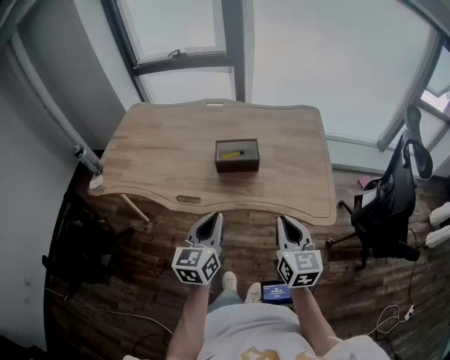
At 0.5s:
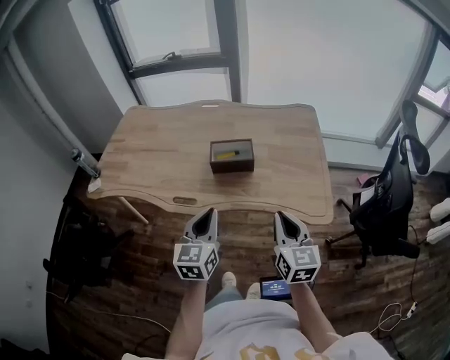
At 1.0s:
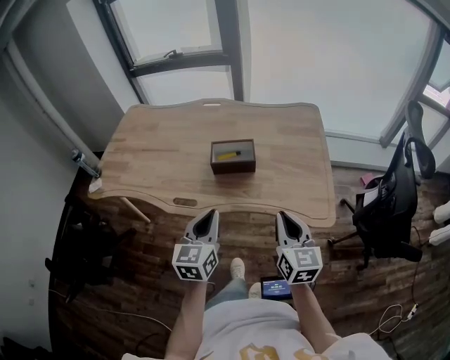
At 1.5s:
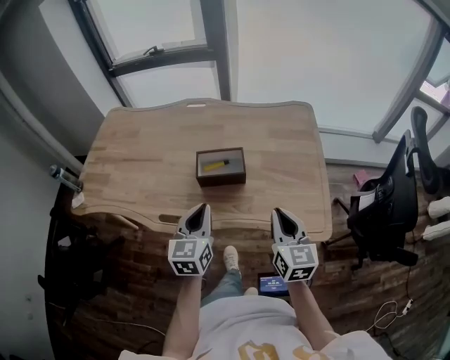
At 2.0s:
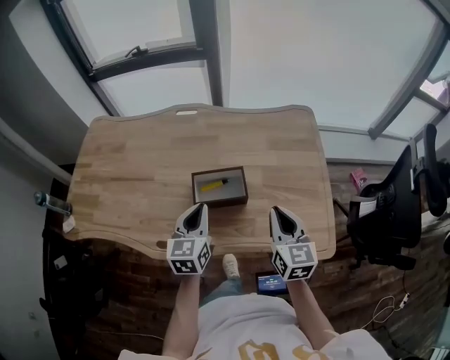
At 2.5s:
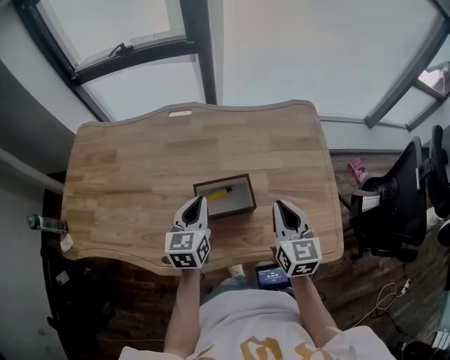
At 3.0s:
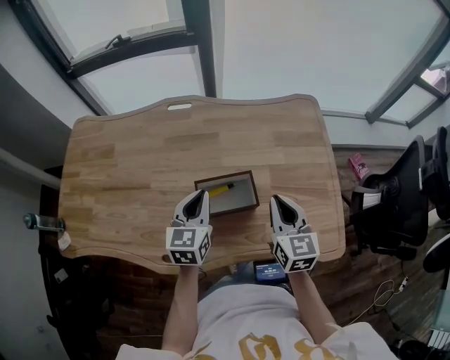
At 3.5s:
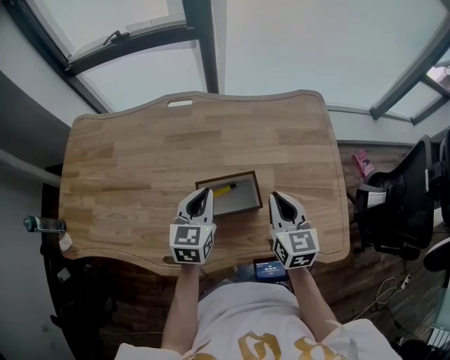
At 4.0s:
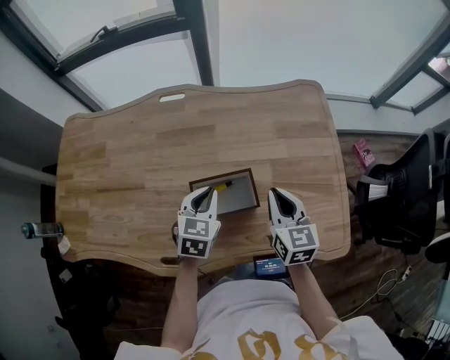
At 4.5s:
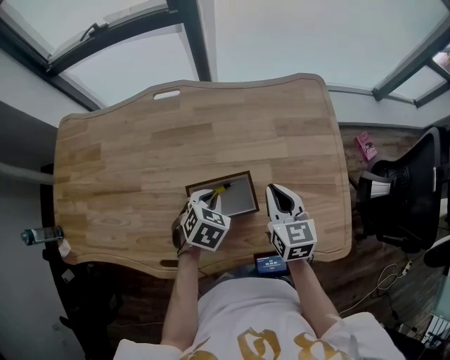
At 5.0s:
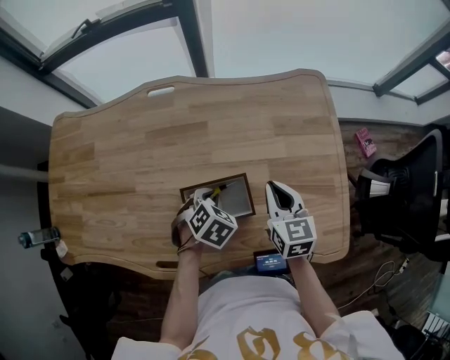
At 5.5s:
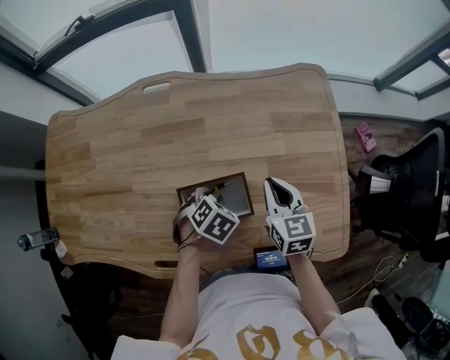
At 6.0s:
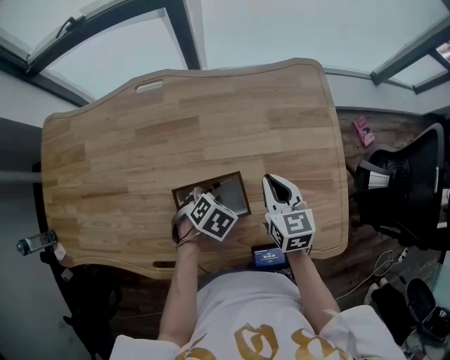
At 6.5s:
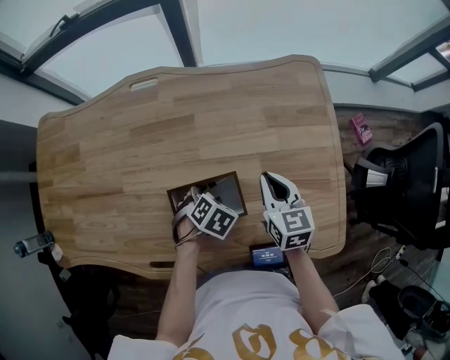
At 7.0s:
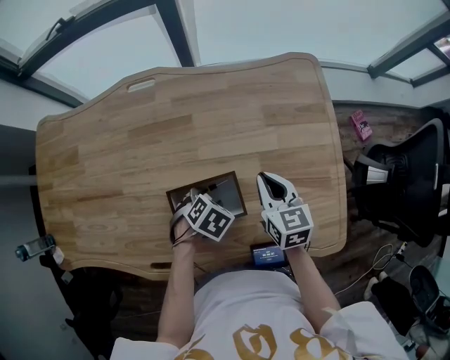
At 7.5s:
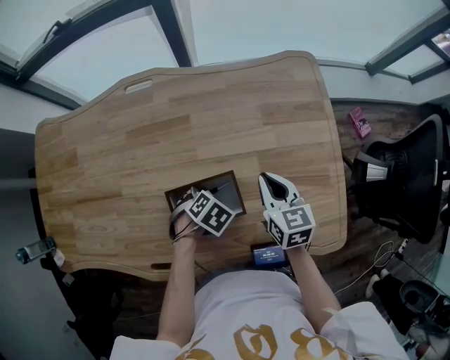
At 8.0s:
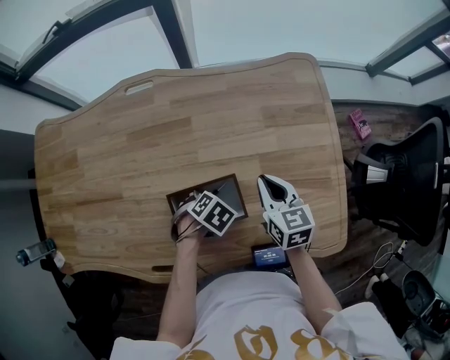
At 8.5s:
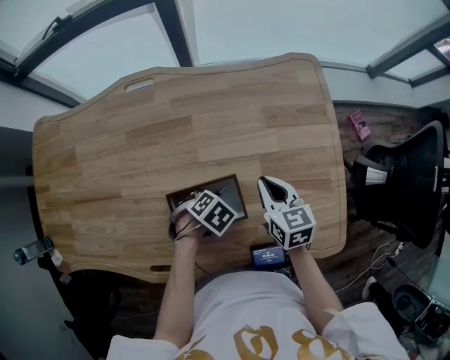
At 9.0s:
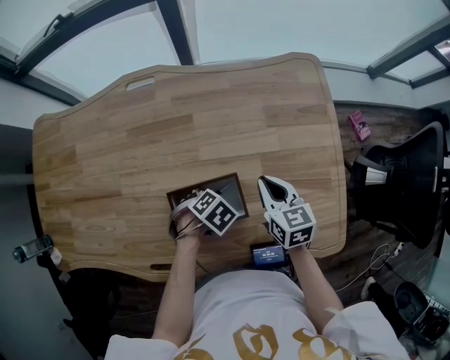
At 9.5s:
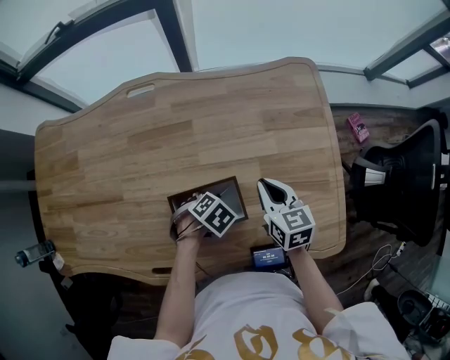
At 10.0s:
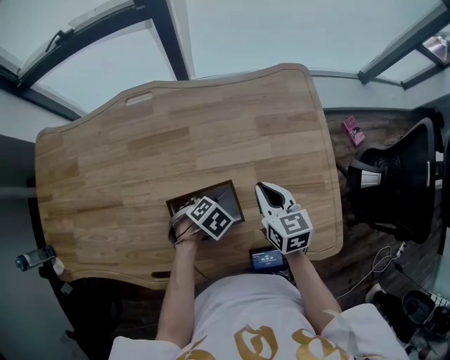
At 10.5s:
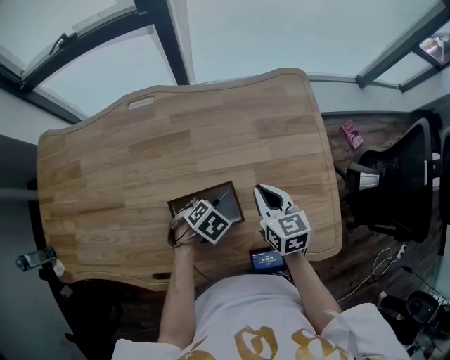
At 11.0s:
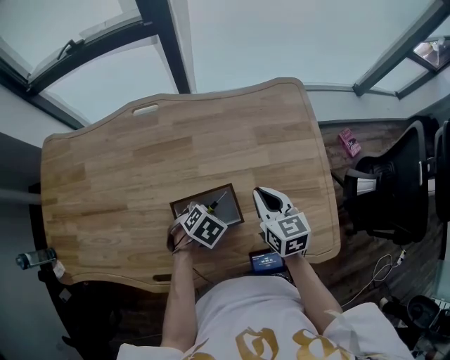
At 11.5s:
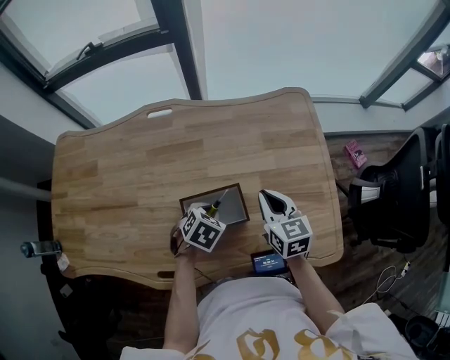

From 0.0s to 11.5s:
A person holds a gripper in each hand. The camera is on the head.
From 0.0s to 2.0s: The grippers both shift forward by approximately 25 cm.
From 2.0s to 4.0s: The two grippers go about 15 cm forward and downward. The left gripper turns by roughly 30 degrees.
From 4.0s to 6.0s: The left gripper shifts roughly 10 cm downward, angles its fingers downward, by about 40 degrees, and opens its fingers; the right gripper ends up roughly 10 cm from where it was.
From 6.0s to 7.5s: The left gripper opens its fingers.
From 7.5s to 9.5s: The left gripper closes up.
From 9.5s to 11.5s: The two grippers go about 5 cm upward. The left gripper changes its angle by some 20 degrees.

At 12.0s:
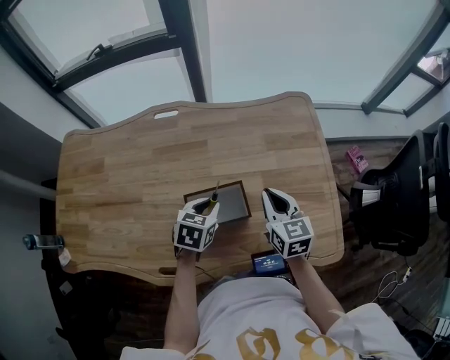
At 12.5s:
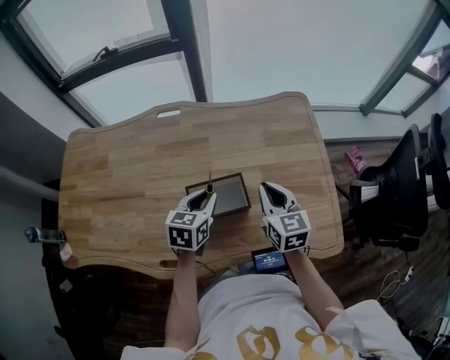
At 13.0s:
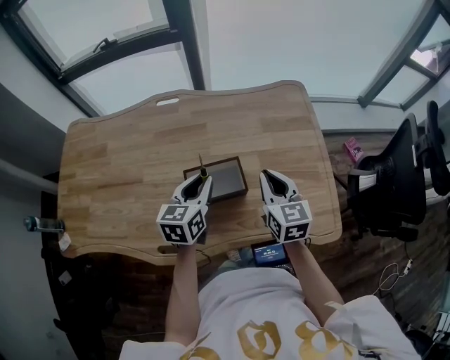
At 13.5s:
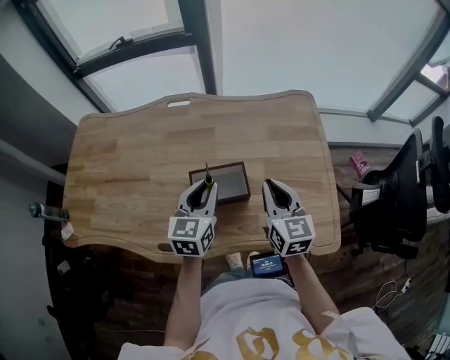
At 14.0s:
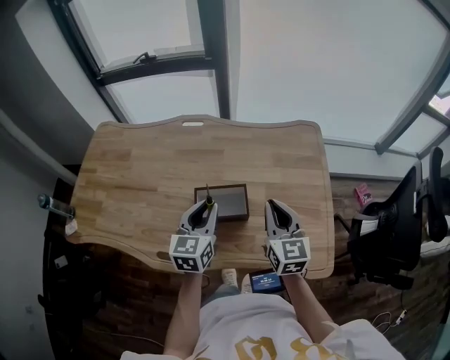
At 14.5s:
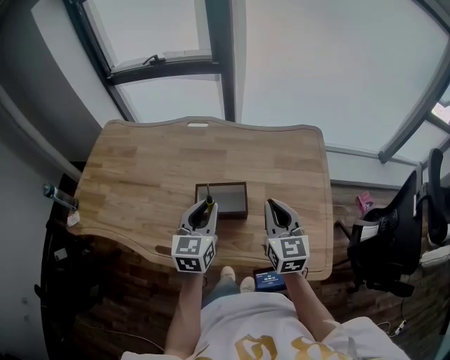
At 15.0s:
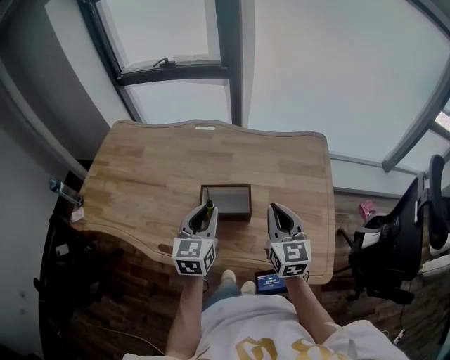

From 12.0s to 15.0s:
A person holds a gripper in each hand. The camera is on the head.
From 12.0s to 13.5s: The left gripper heads upward, covering about 10 cm, and rotates approximately 30 degrees, while the right gripper travels upward and backward by roughly 10 cm.
From 13.5s to 15.0s: The right gripper shifts by roughly 5 cm, while the left gripper travels backward by roughly 5 cm.

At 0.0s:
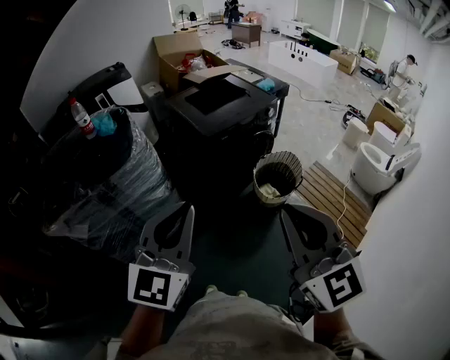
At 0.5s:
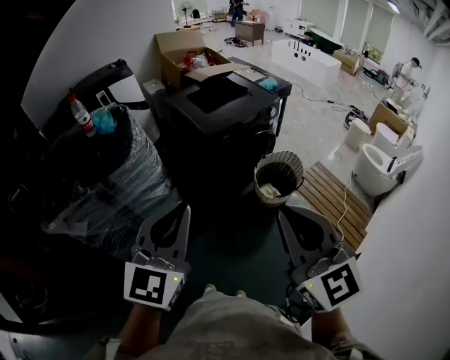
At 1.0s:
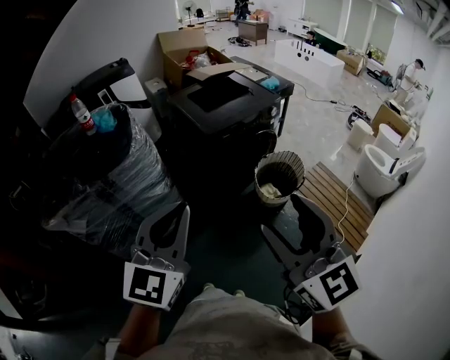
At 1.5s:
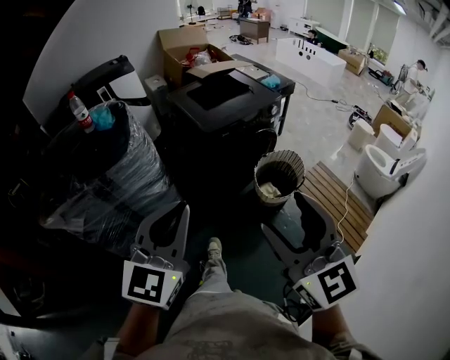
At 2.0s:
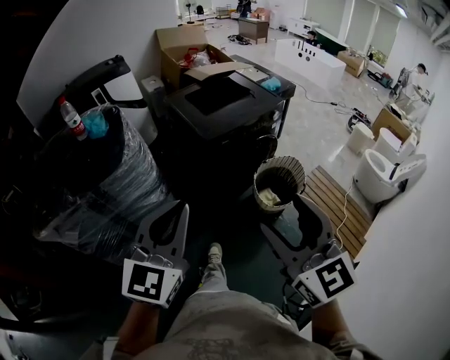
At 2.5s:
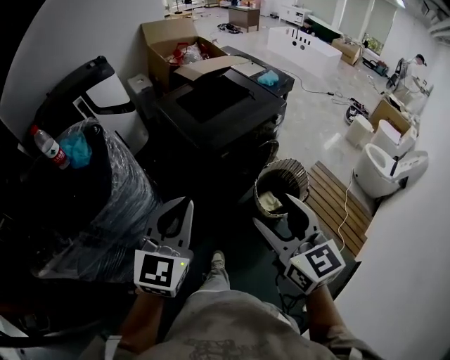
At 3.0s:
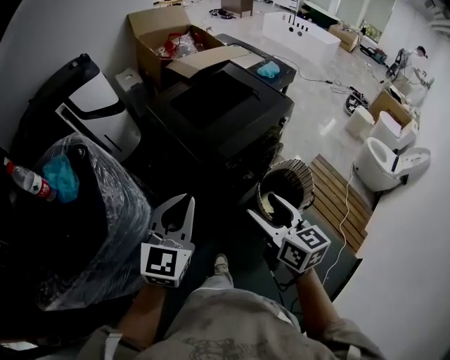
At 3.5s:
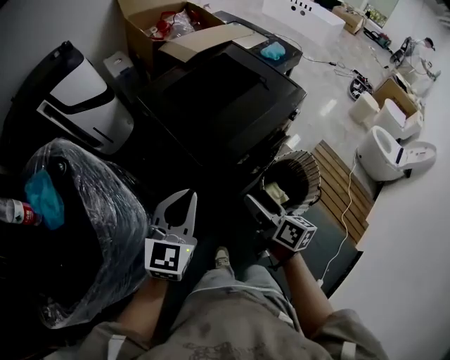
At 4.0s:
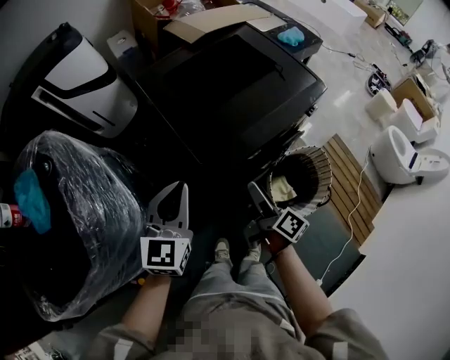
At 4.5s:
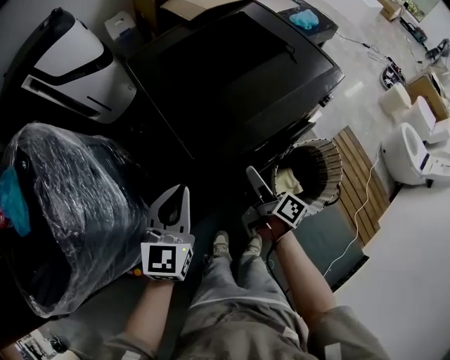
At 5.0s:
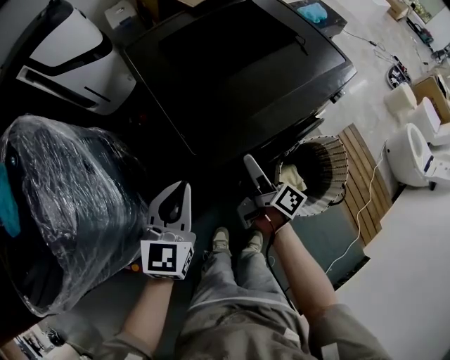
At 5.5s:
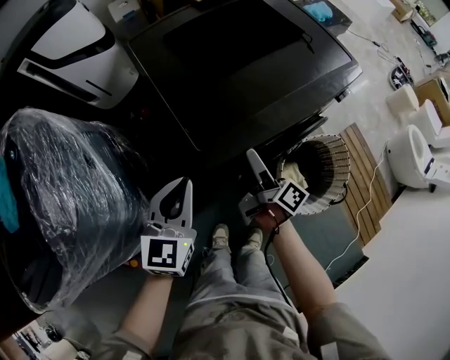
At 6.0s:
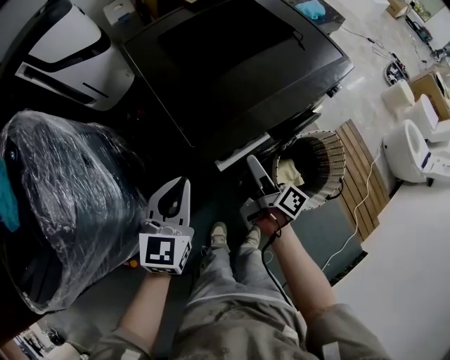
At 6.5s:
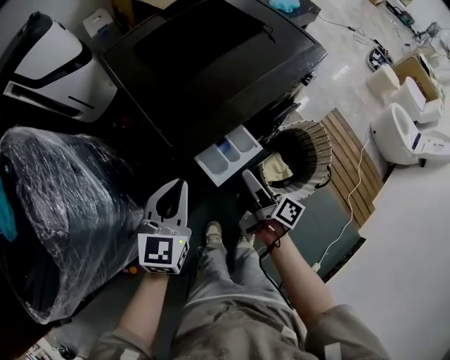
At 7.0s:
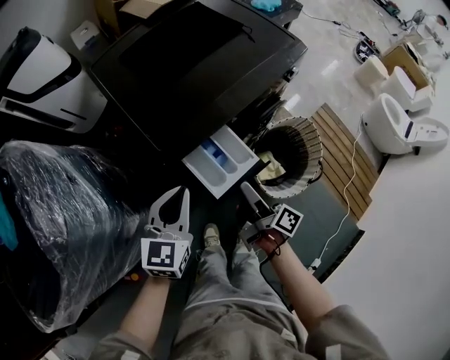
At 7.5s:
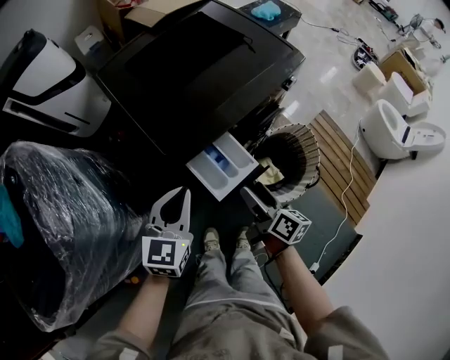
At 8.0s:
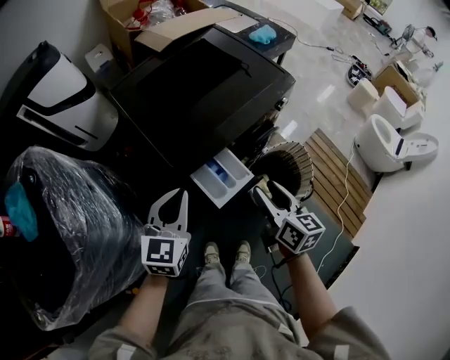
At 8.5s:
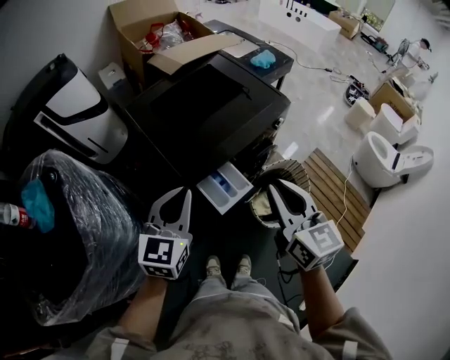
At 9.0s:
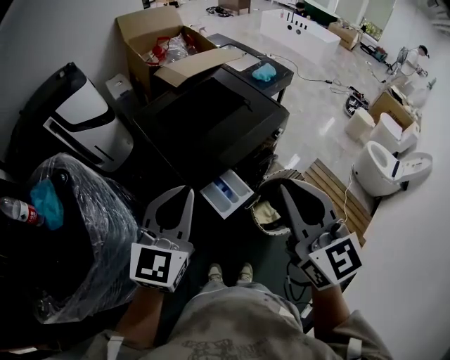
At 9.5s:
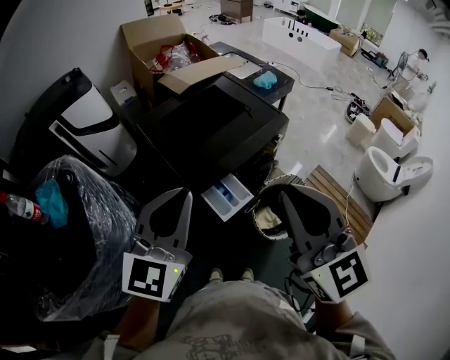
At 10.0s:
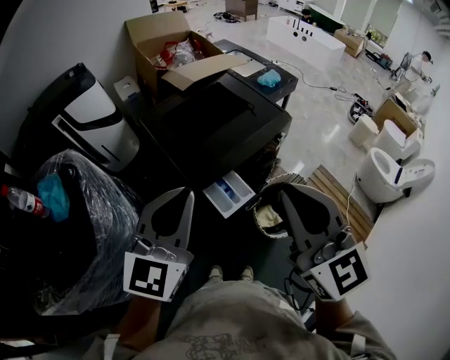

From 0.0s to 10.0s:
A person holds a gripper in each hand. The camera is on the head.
From 0.0s to 2.0s: The right gripper shifts roughly 10 cm forward and downward, and opens its fingers; the left gripper moves forward, some 10 cm.
From 2.0s to 4.0s: The two grippers travel together, forward, roughly 40 cm. The right gripper moves downward, roughly 35 cm, and twists some 80 degrees clockwise, seen from behind. The left gripper is displaced downward by some 25 cm.
From 4.0s to 6.0s: Both grippers travel together downward, about 10 cm.
From 6.0s to 8.0s: The left gripper heads upward and to the right, covering about 10 cm. The right gripper is displaced upward, to the right and backward by about 20 cm, rotates around the line of its fingers by roughly 50 degrees, counterclockwise from behind, and closes up.
From 8.0s to 10.0s: The grippers both shift upward by about 30 cm. The right gripper rolls counterclockwise, seen from behind, by approximately 40 degrees, and closes.

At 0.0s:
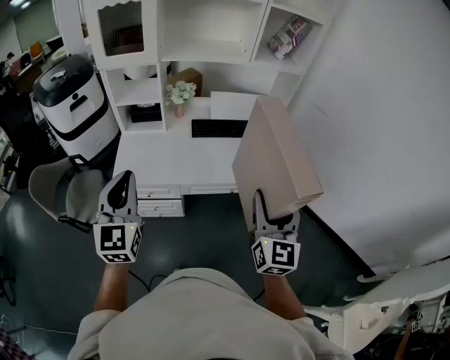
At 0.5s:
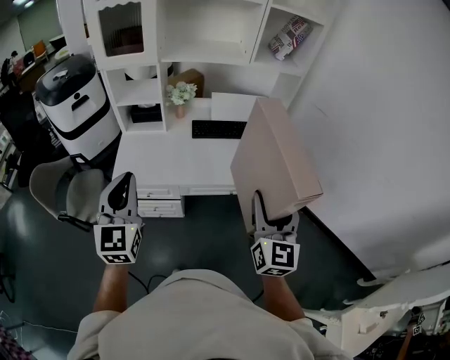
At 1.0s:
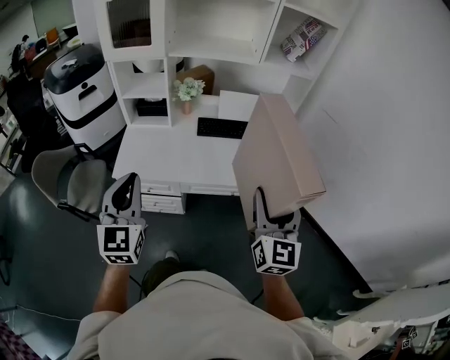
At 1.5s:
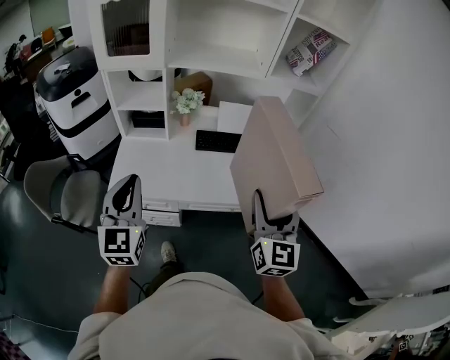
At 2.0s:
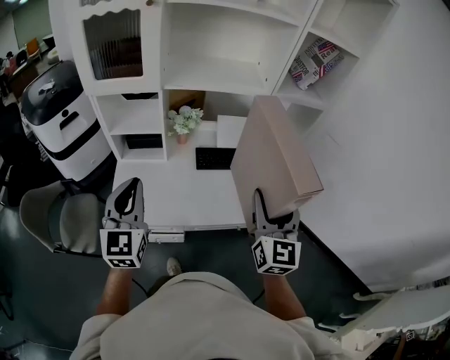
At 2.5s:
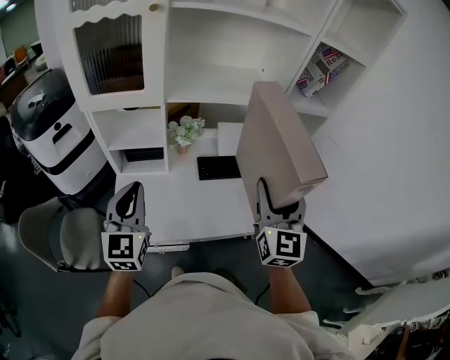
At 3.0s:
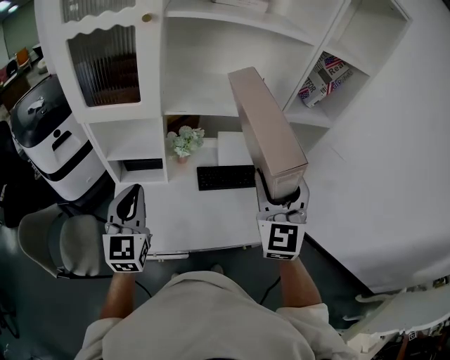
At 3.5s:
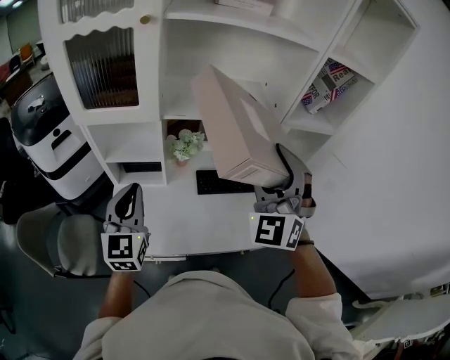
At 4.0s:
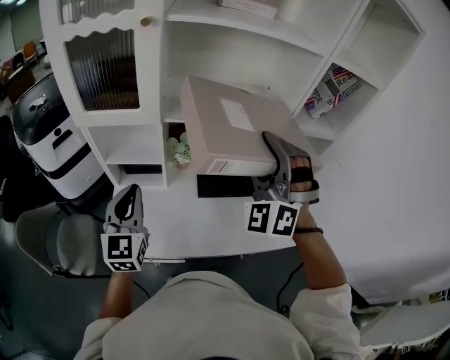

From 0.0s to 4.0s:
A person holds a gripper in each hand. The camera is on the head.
From 0.0s to 2.0s: The two grippers go some 20 cm forward.
From 2.0s to 4.0s: The left gripper heads forward, covering about 15 cm; the right gripper moves forward, to the left and upward, some 25 cm, and rotates around the line of its fingers by about 70 degrees, counterclockwise from behind.
